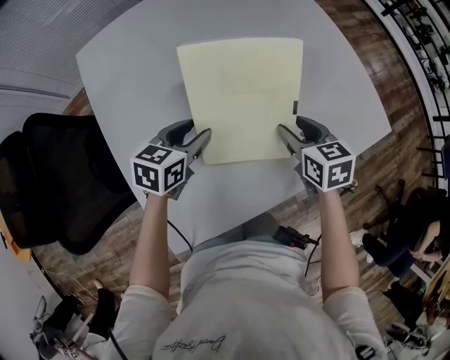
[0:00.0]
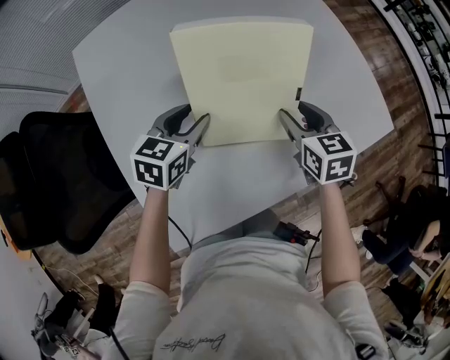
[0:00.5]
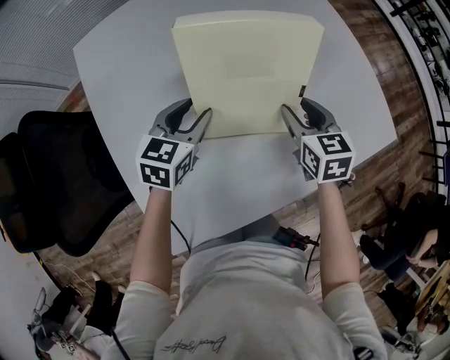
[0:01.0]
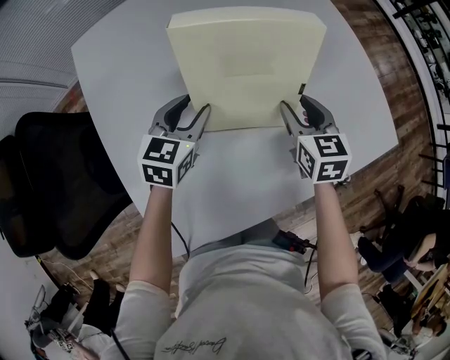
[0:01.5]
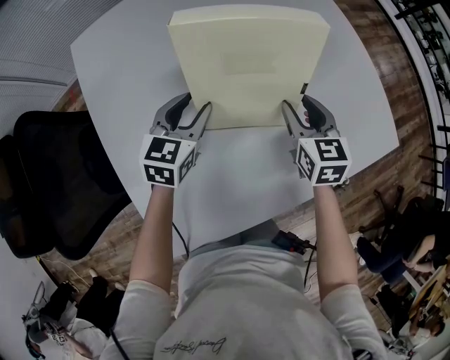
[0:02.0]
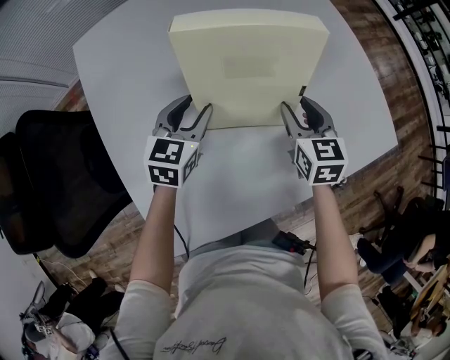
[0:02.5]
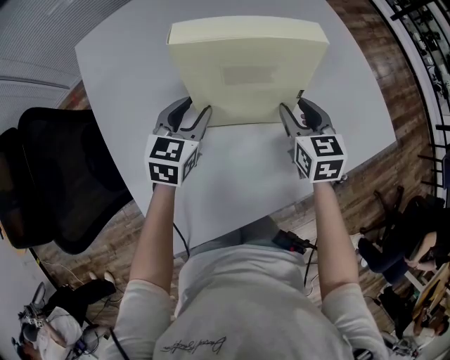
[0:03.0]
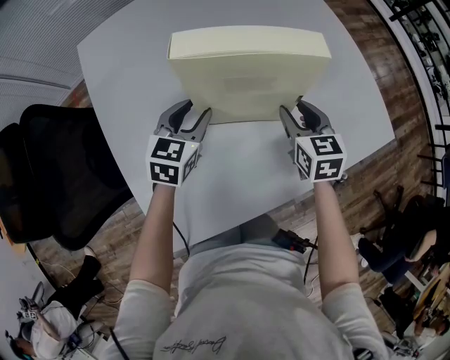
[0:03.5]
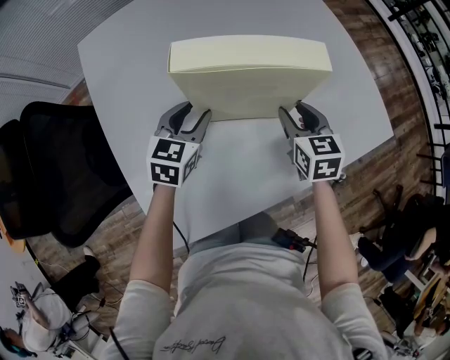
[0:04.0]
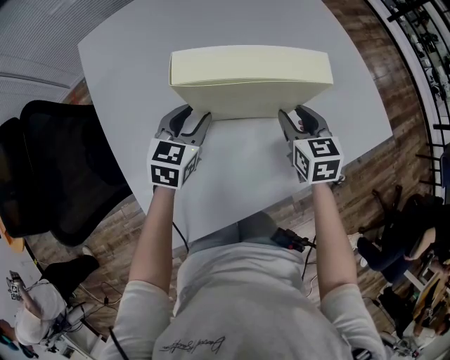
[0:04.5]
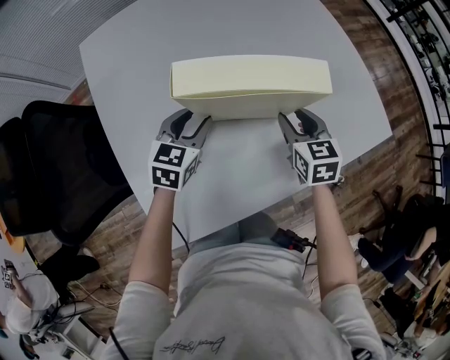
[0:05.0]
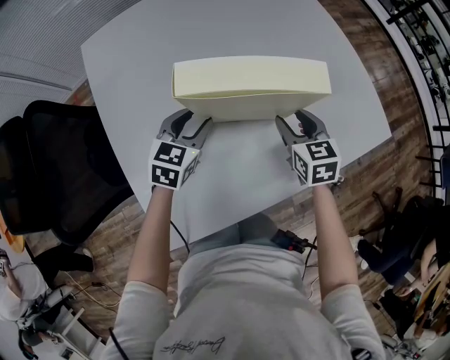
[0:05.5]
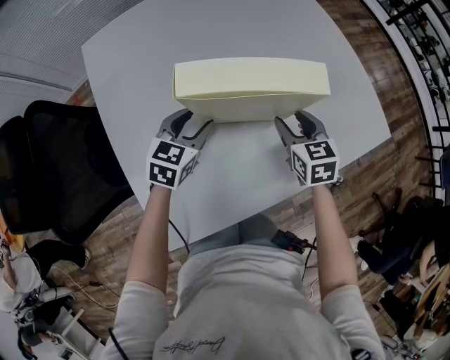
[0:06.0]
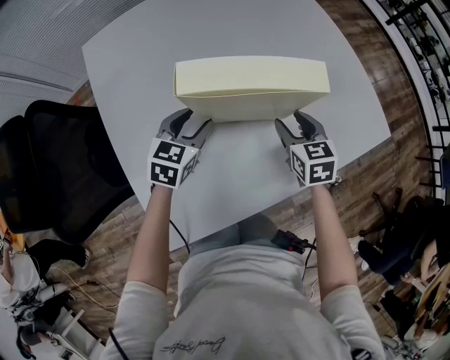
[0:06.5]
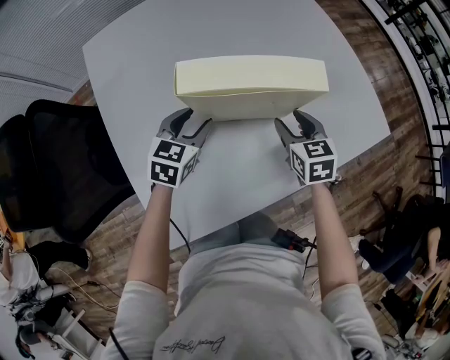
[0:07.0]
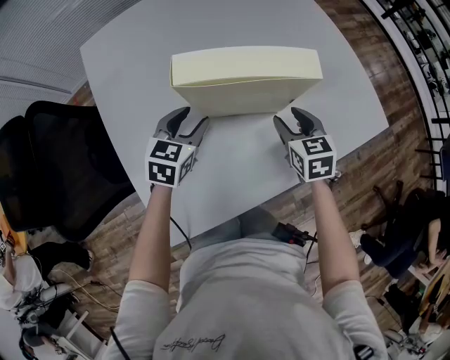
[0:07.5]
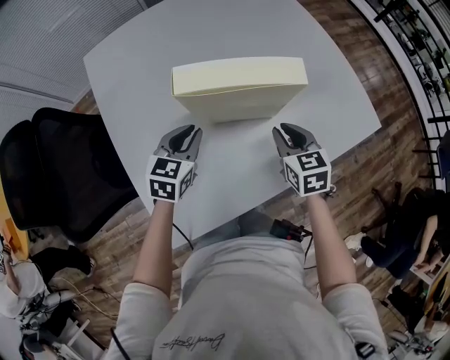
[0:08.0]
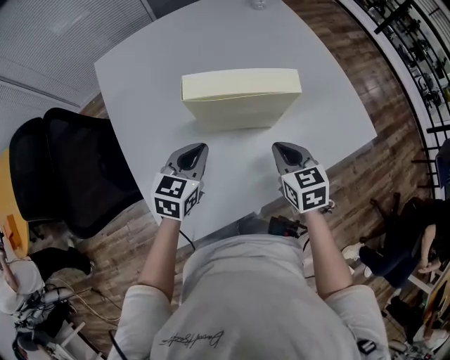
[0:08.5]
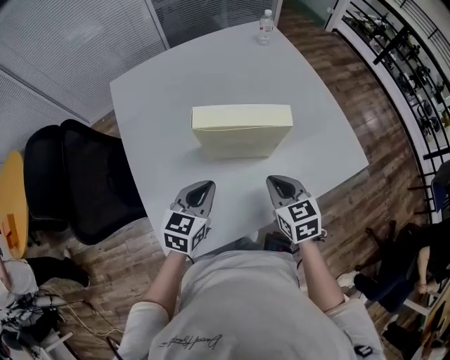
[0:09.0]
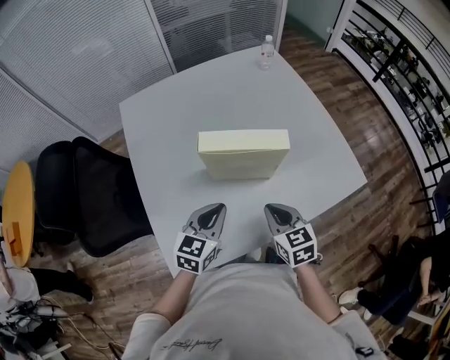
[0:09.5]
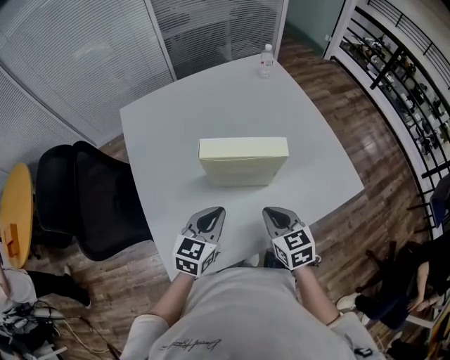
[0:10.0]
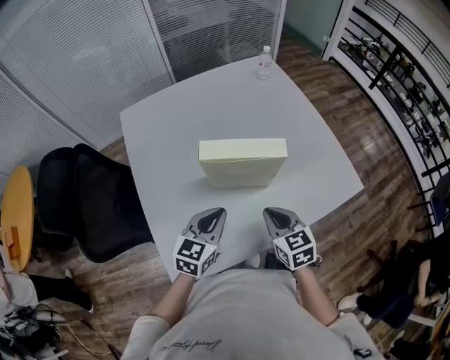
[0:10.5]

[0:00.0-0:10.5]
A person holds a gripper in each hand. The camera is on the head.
0:00.0 to 0:02.0: The grippers both shift forward by some 5 cm.
0:02.0 to 0:04.0: There are only small adjustments of the grippers.
0:04.0 to 0:06.5: There are only small adjustments of the grippers.
0:06.5 to 0:08.5: The two grippers go some 10 cm backward and upward. The right gripper closes; the left gripper closes its fingers.
0:08.5 to 0:10.5: The right gripper changes place by about 5 cm. Meanwhile the left gripper shifts by about 5 cm.

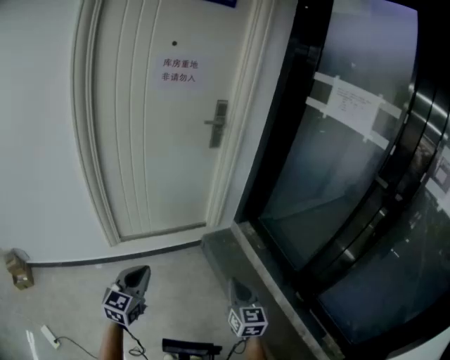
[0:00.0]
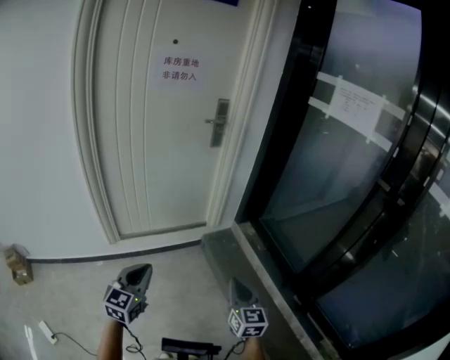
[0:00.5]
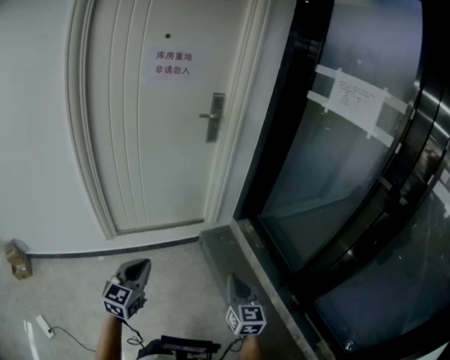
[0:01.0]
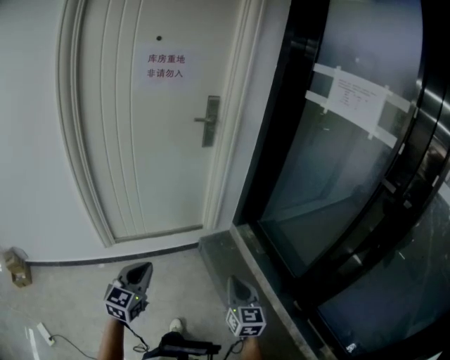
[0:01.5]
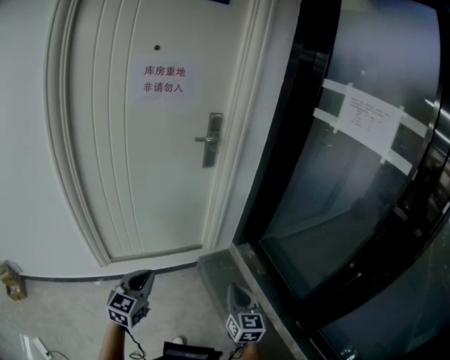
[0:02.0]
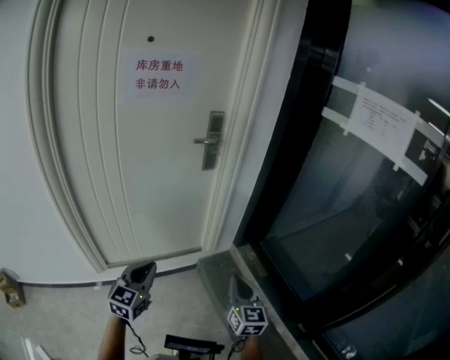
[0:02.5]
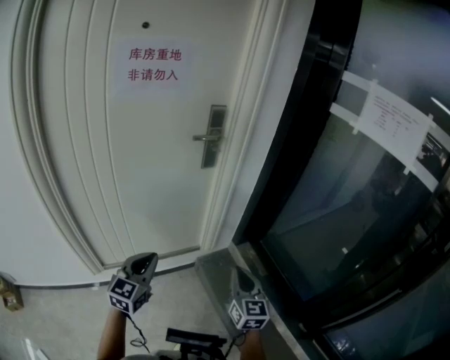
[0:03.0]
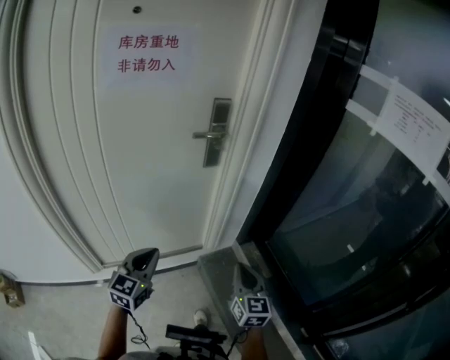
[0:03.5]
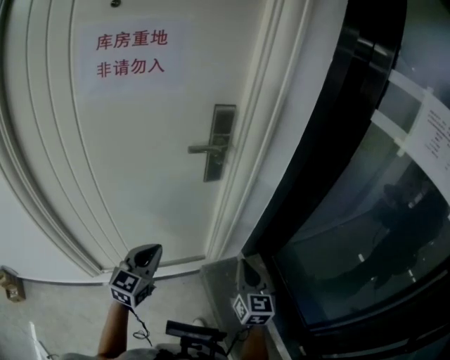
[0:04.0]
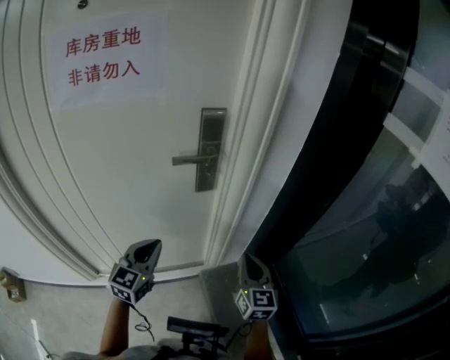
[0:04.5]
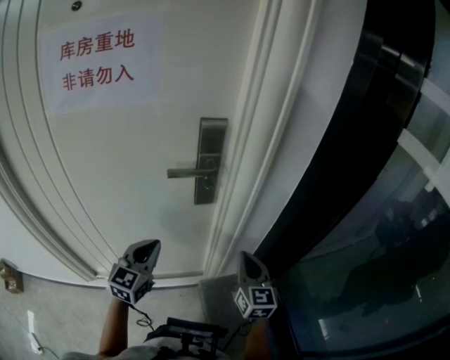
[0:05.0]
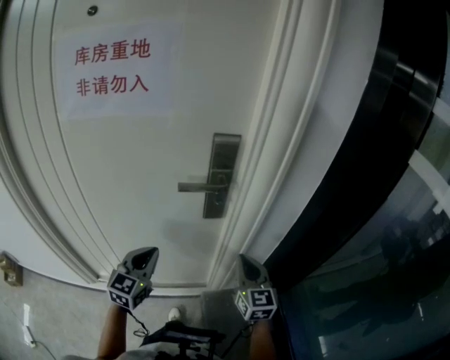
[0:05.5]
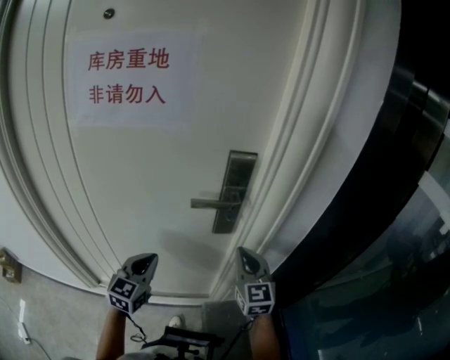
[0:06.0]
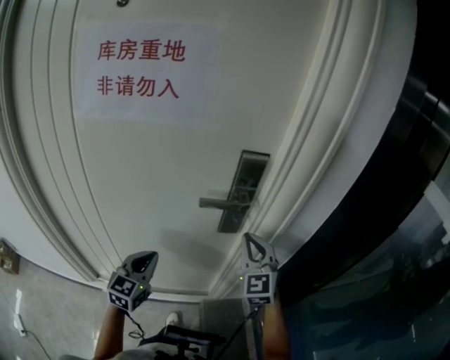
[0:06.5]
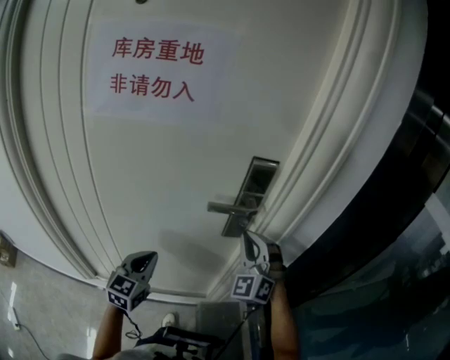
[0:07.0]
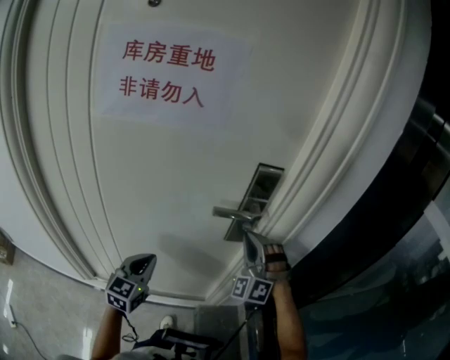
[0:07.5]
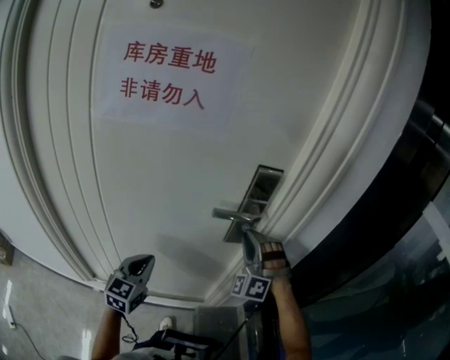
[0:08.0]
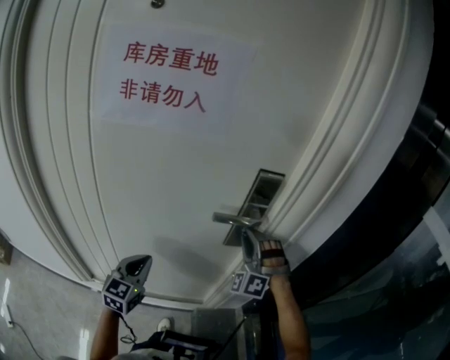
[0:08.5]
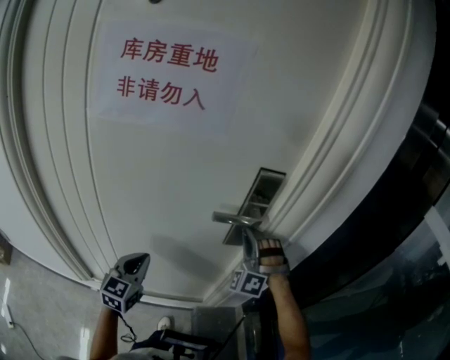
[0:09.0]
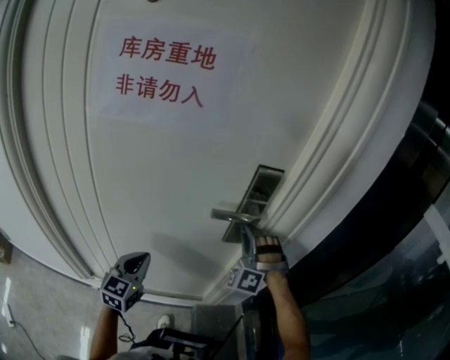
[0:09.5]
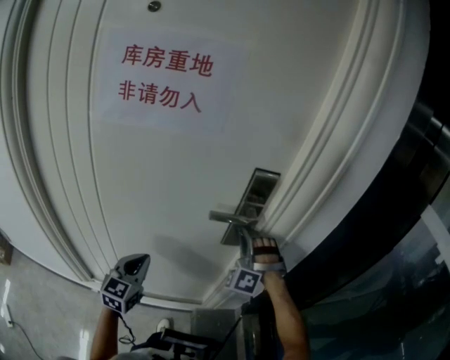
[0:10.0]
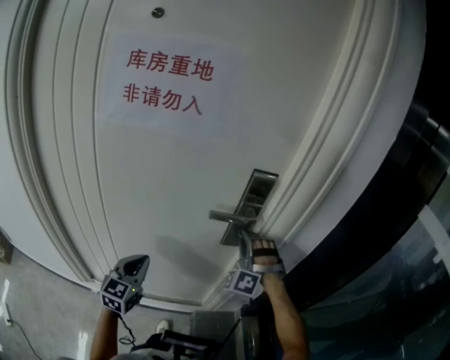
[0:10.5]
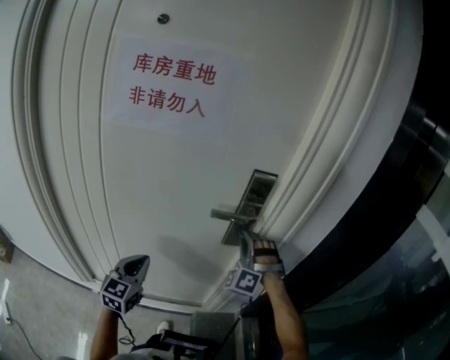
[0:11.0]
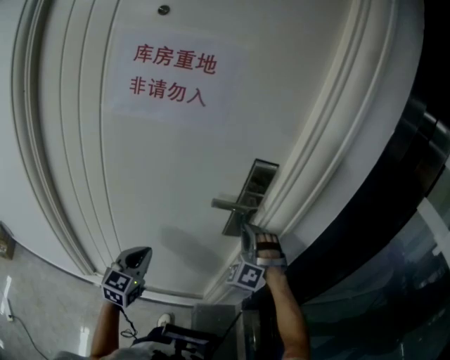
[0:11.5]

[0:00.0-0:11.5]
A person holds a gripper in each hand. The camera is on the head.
0:00.0 to 0:02.0: The grippers both shift forward by roughly 20 cm.
0:02.0 to 0:04.0: Both grippers move forward, some 35 cm.
0:04.0 to 0:06.0: The right gripper travels forward by some 25 cm, and changes its angle by roughly 20 degrees, while the left gripper travels forward by roughly 15 cm.
0:06.0 to 0:07.5: The right gripper moves roughly 10 cm, and rolls counterclockwise, seen from behind, by some 70 degrees.
0:07.5 to 0:11.5: The grippers make only small movements.

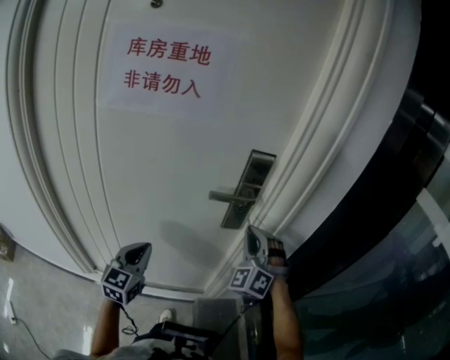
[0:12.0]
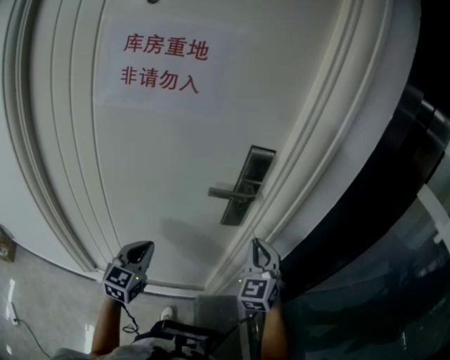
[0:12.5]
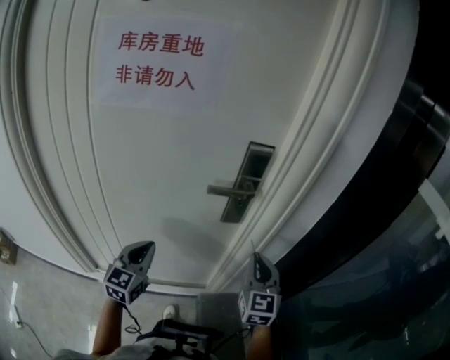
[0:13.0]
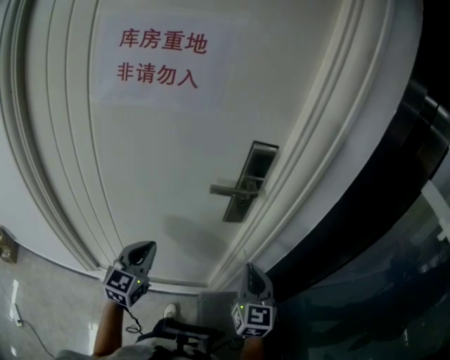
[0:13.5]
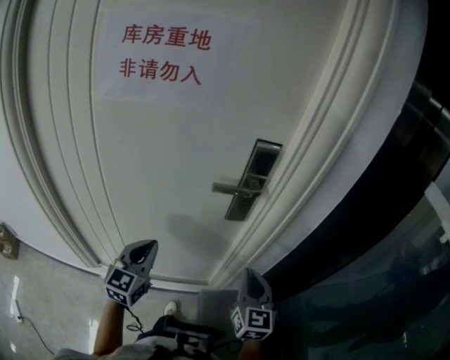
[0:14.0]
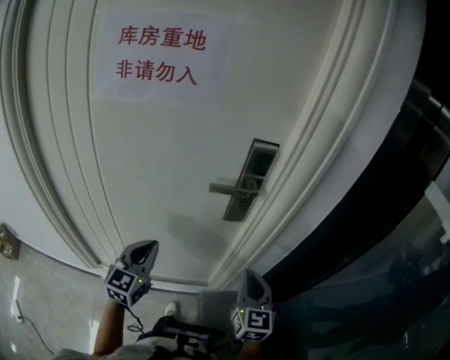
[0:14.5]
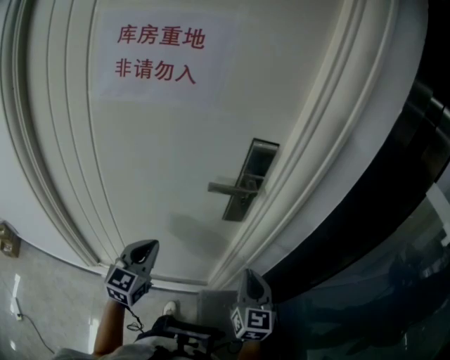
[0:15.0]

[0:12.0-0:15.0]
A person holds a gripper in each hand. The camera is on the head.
0:12.0 to 0:13.5: The right gripper shifts roughly 10 cm backward and downward, and twists some 60 degrees clockwise, seen from behind.
0:13.5 to 0:15.0: The grippers move only a little.

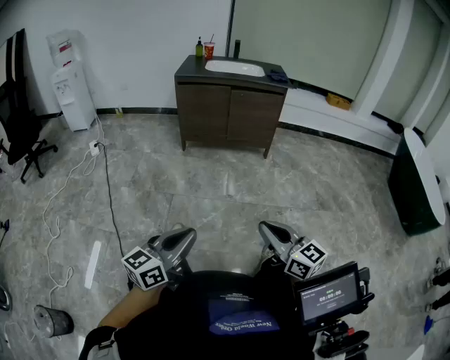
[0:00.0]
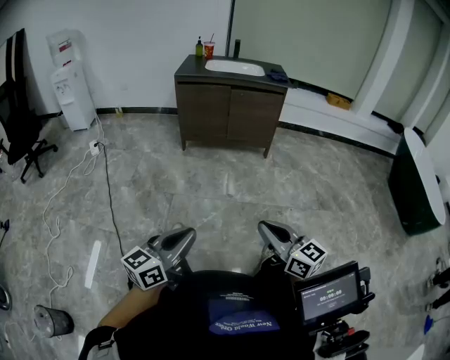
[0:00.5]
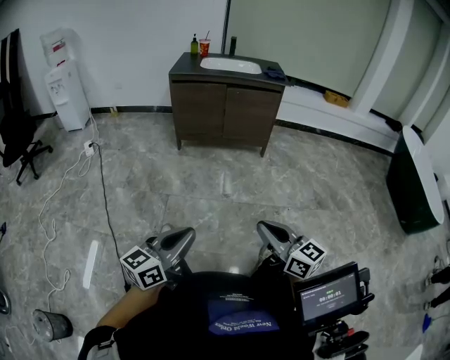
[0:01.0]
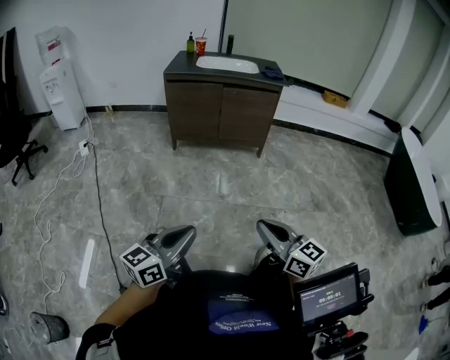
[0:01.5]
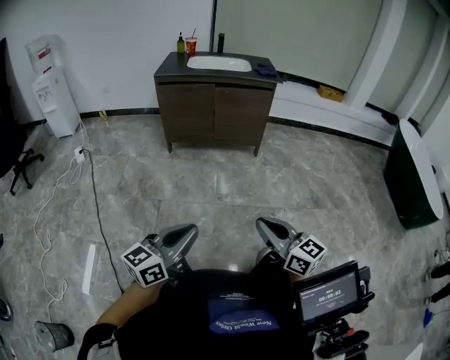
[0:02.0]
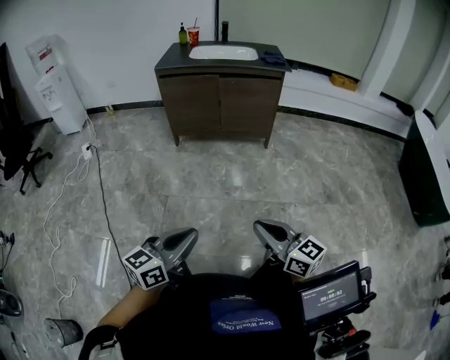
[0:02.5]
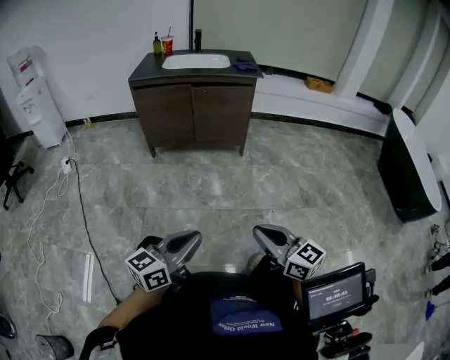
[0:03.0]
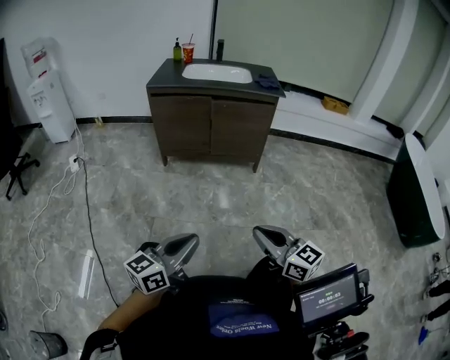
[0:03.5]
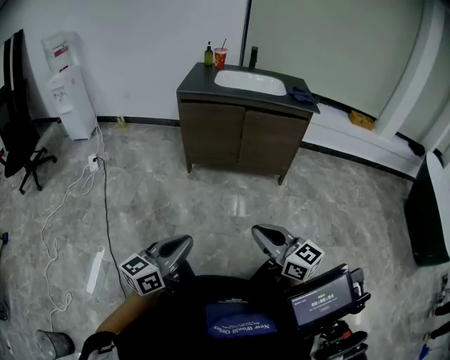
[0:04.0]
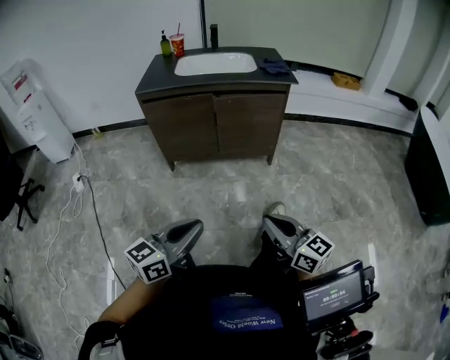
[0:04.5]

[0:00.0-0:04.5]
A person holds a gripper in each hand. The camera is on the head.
0:00.0 to 0:02.0: Both grippers travel together forward, about 10 cm.
0:02.0 to 0:04.5: Both grippers travel together forward, about 25 cm.
